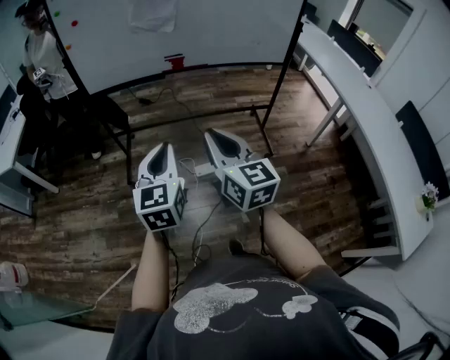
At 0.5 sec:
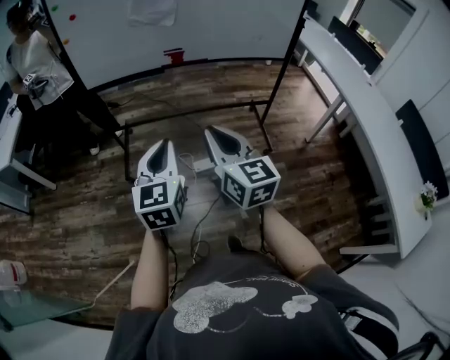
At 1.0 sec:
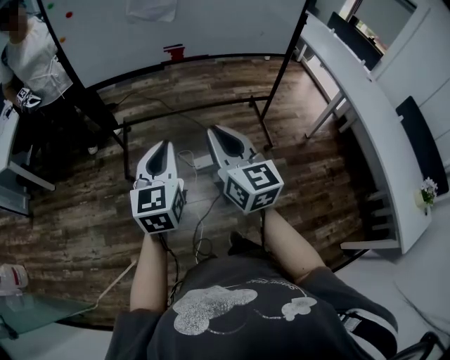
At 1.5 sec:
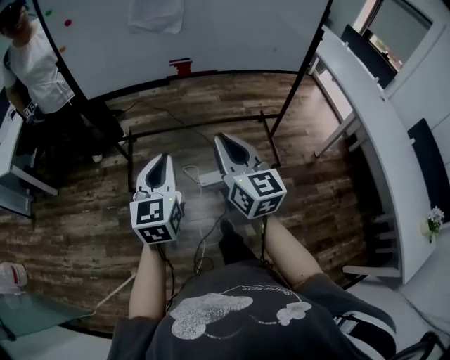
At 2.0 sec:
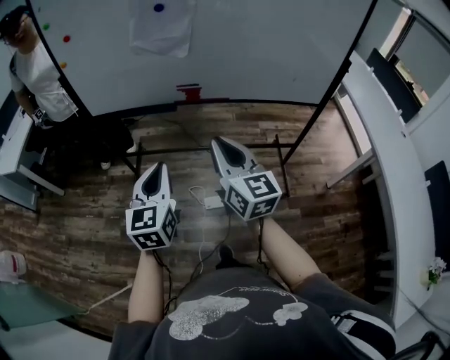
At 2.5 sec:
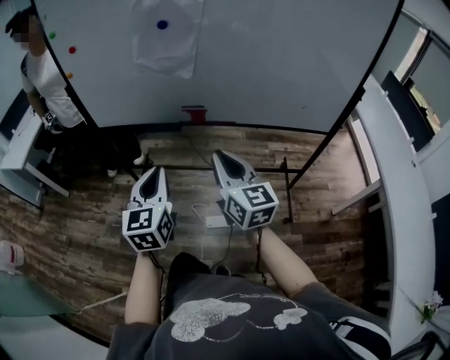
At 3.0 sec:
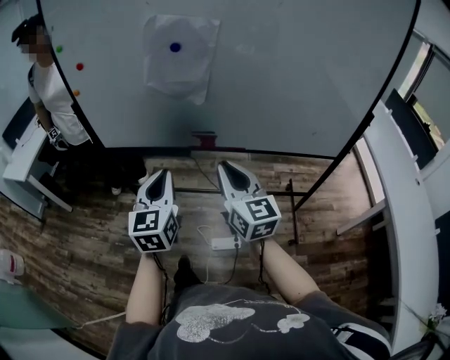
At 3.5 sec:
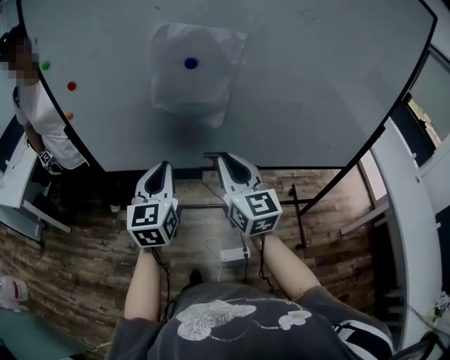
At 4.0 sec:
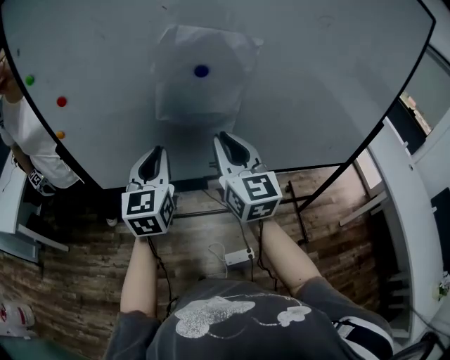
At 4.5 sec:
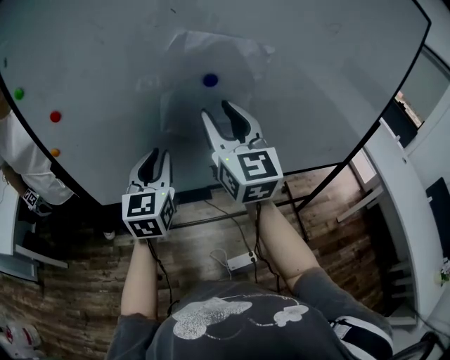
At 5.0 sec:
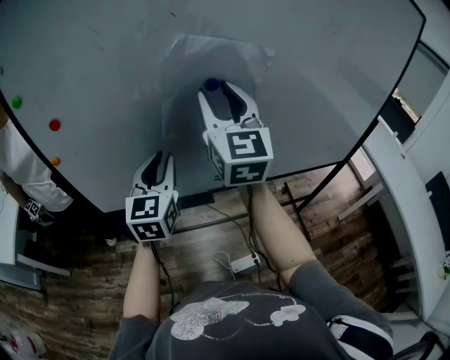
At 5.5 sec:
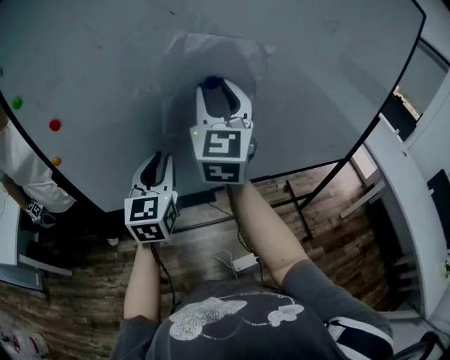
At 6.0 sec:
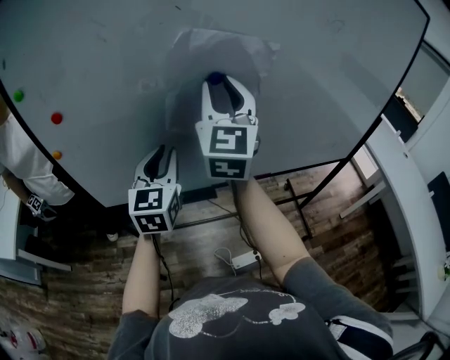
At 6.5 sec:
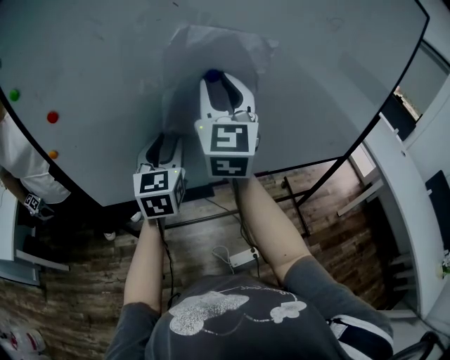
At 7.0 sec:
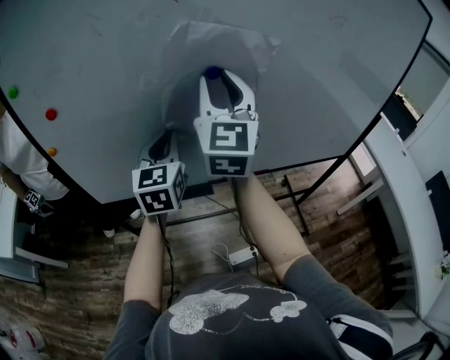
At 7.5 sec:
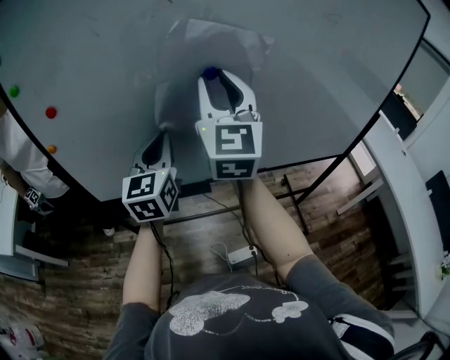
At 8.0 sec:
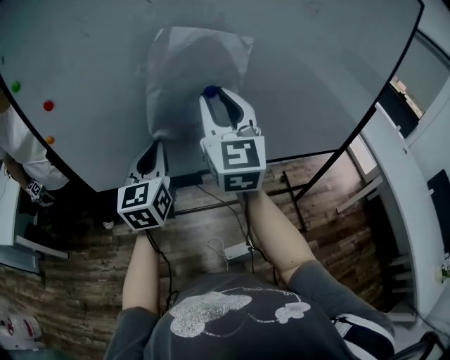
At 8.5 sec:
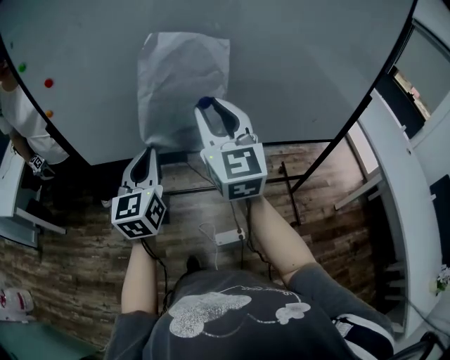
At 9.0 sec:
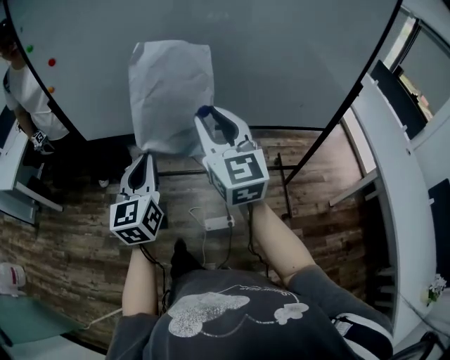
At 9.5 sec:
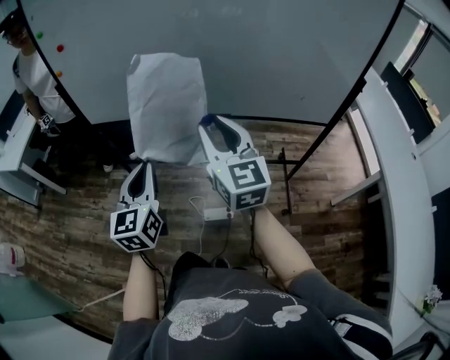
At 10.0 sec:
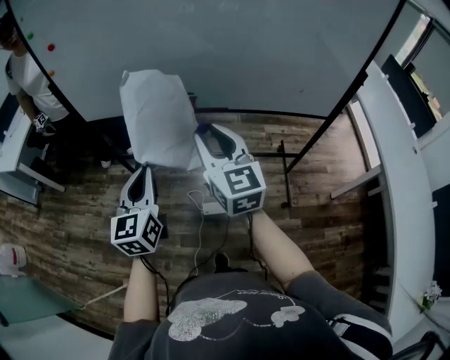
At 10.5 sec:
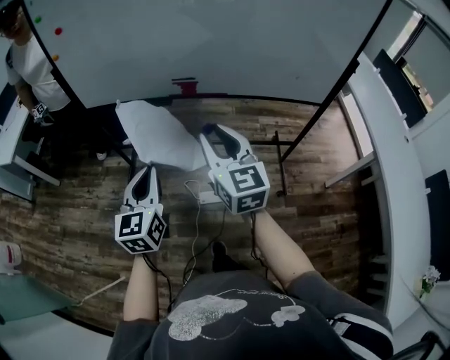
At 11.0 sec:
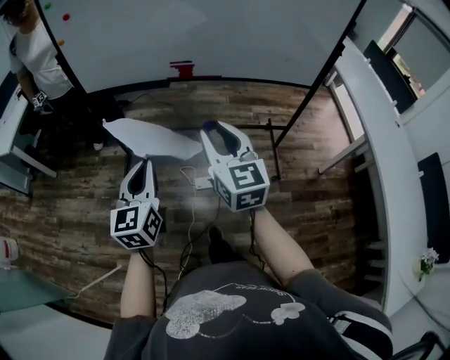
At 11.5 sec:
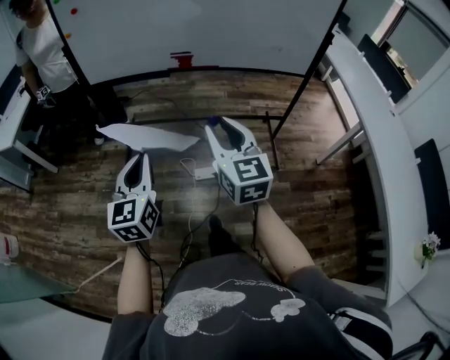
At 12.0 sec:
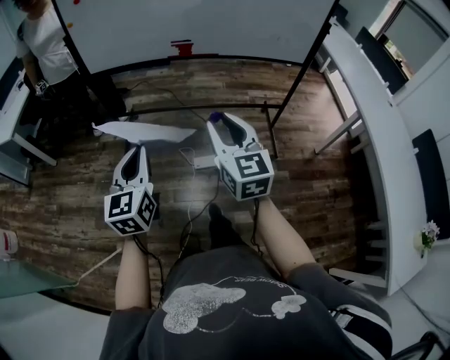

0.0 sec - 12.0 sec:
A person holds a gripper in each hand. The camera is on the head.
0.0 sec - 2.0 sec: The two grippers go approximately 25 cm forward.
2.0 sec - 4.0 sec: The two grippers go some 35 cm forward.
4.0 sec - 6.0 sec: The left gripper goes approximately 5 cm forward, while the right gripper moves upward and forward, about 15 cm, rotates some 30 degrees, and opens its fingers.
6.0 sec - 8.0 sec: The left gripper opens, then closes once more; the right gripper goes approximately 5 cm backward.
8.0 sec - 10.0 sec: The left gripper heads backward, covering approximately 30 cm, while the right gripper heads backward, downward and to the right, covering approximately 30 cm, and rotates some 30 degrees.
10.0 sec - 12.0 sec: The grippers both shift backward by roughly 25 cm.

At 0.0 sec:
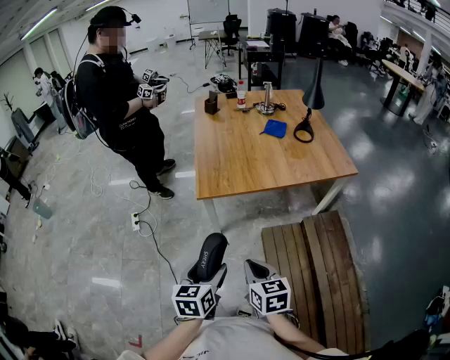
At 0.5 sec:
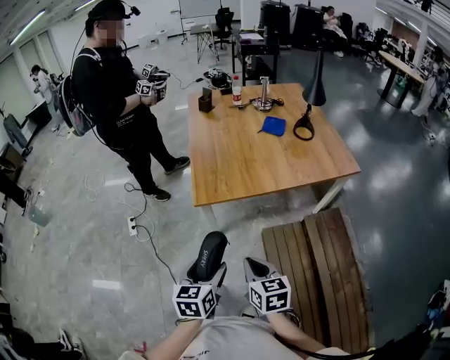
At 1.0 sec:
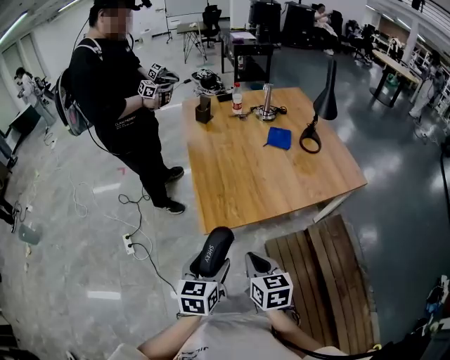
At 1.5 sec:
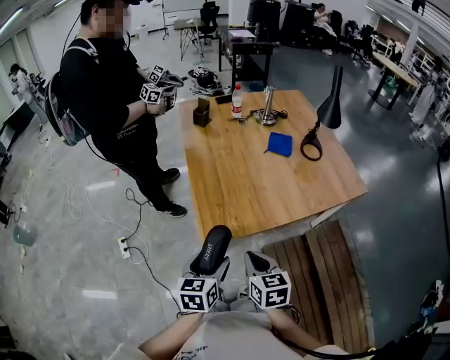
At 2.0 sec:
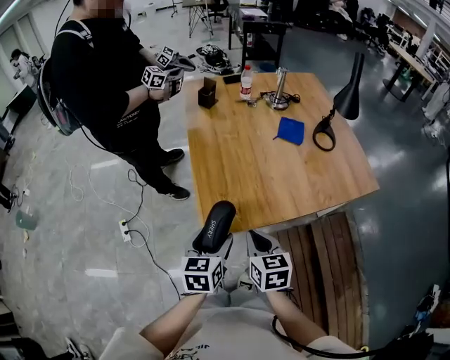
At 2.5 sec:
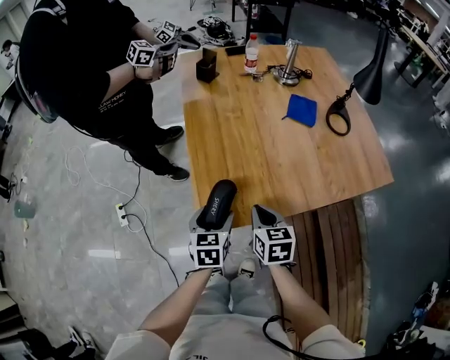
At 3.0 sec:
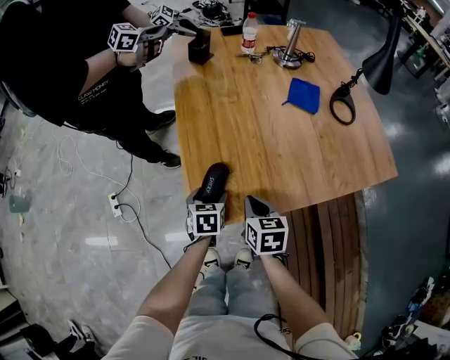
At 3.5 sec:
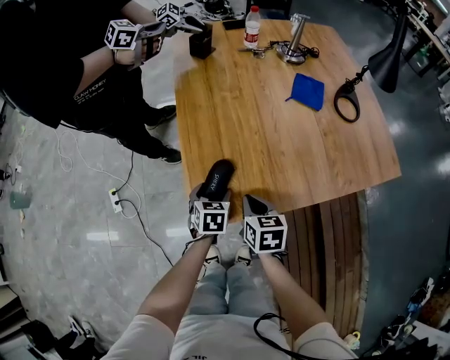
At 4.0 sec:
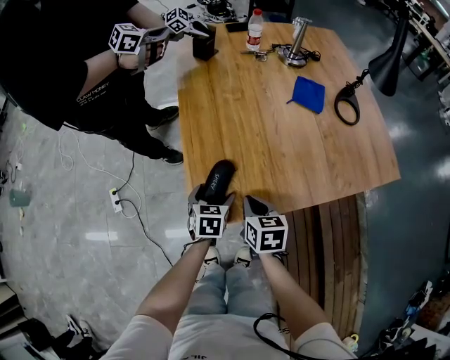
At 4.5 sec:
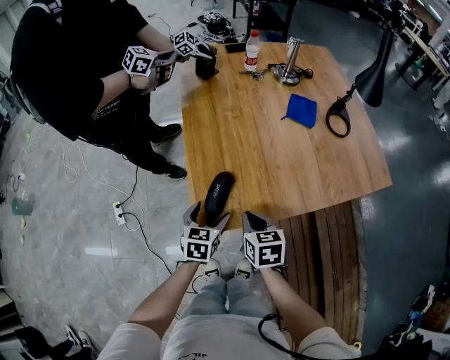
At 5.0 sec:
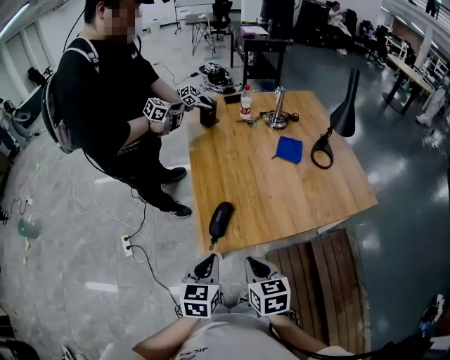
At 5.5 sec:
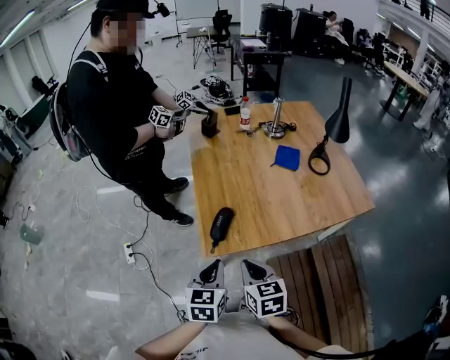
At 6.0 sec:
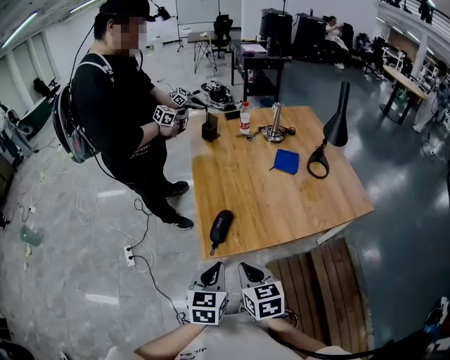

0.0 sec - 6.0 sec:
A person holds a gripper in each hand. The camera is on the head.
0.0 sec - 2.0 sec: Both grippers travel together forward, approximately 35 cm.
2.0 sec - 4.0 sec: Both grippers travel together downward and forward, roughly 25 cm.
4.0 sec - 6.0 sec: The grippers both shift upward and backward by approximately 30 cm. The left gripper closes.

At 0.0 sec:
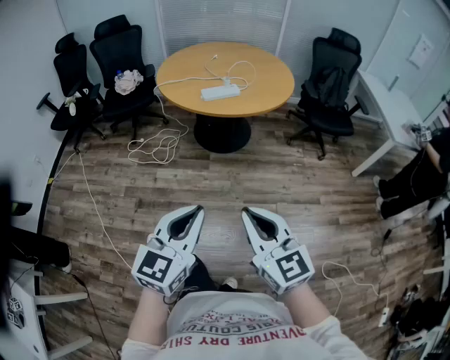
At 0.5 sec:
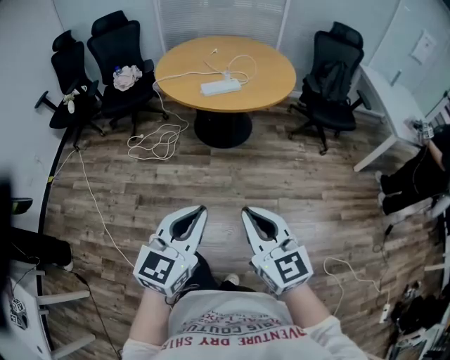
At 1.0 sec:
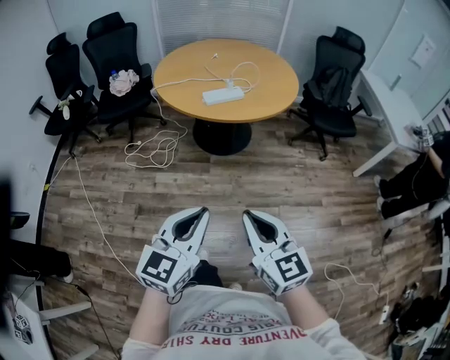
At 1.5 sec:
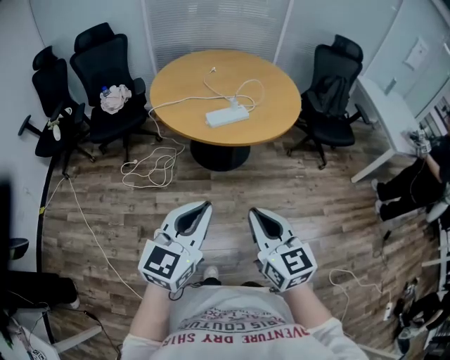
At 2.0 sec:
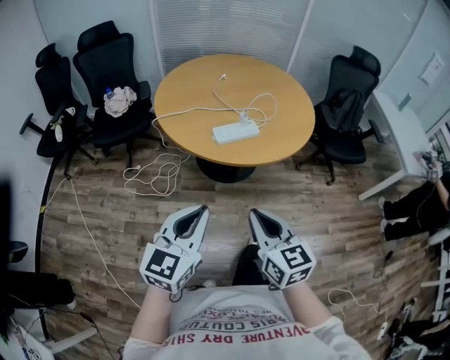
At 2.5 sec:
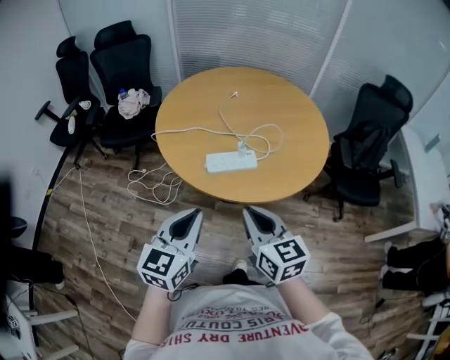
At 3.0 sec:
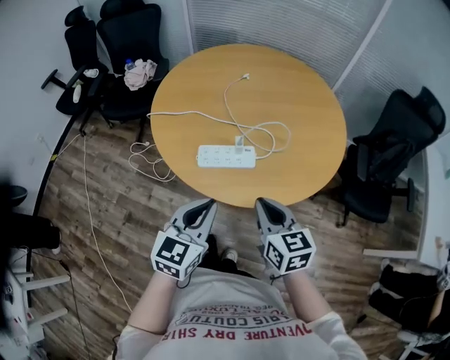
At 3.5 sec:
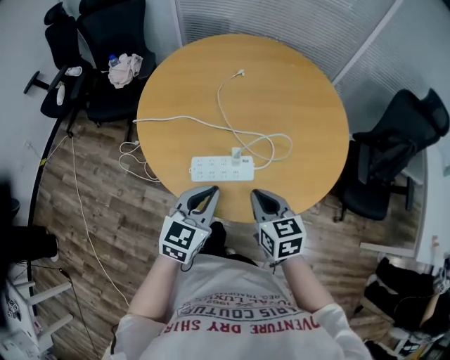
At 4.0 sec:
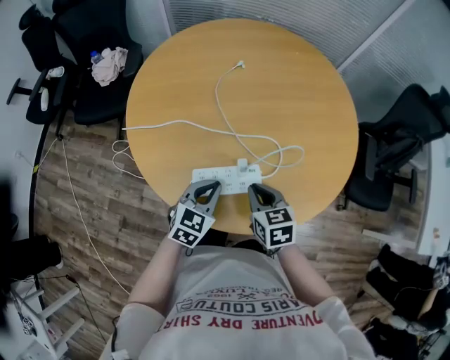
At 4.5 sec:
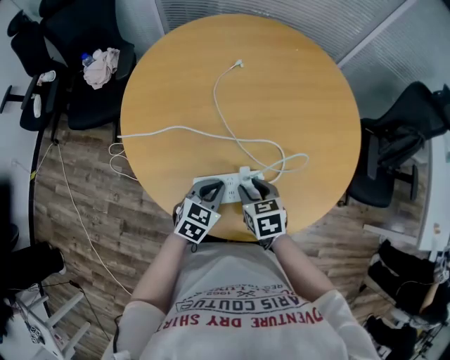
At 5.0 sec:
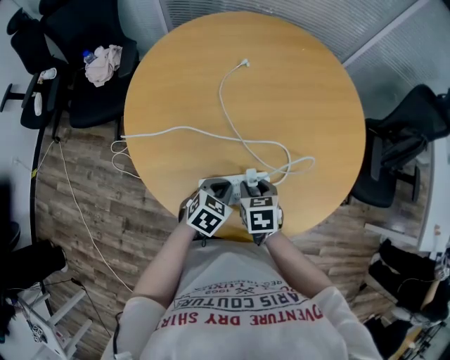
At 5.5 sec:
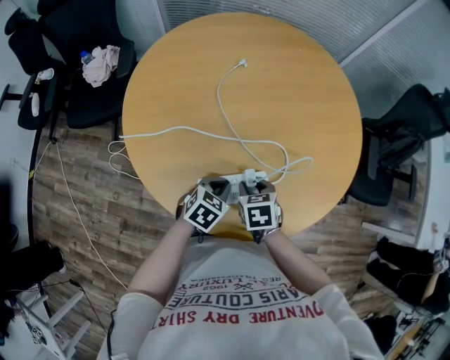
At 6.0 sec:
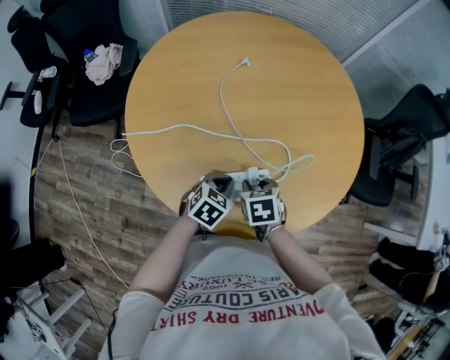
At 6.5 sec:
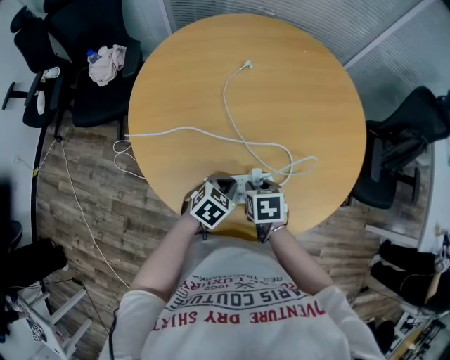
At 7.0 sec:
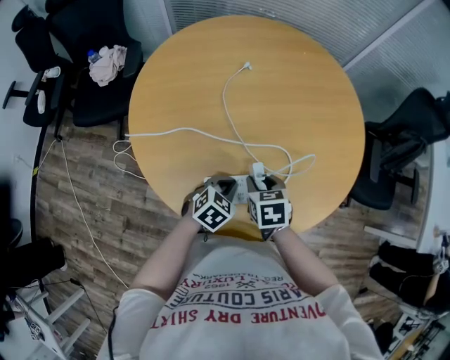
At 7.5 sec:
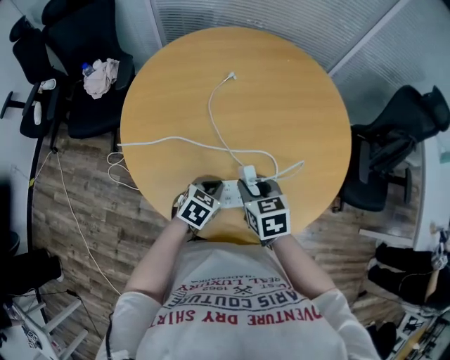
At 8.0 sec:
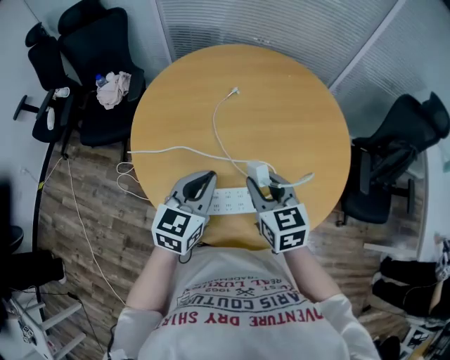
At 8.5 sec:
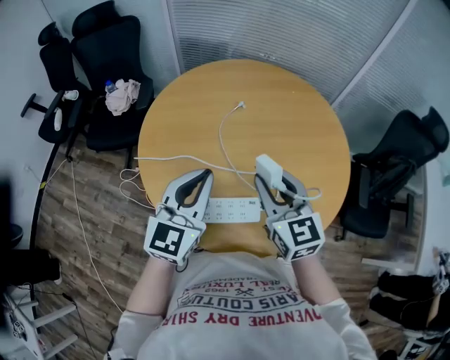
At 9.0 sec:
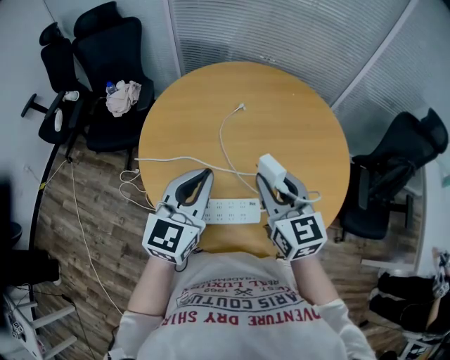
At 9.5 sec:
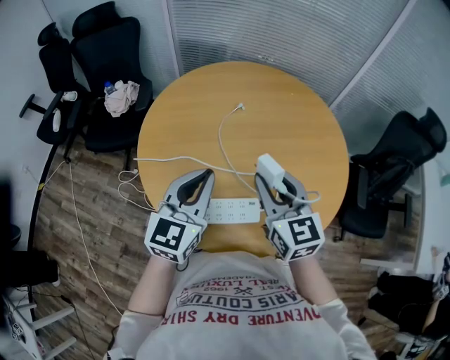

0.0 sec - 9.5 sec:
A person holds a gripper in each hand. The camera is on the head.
0.0 sec - 2.0 sec: The two grippers go roughly 30 cm forward.
2.0 sec - 4.0 sec: The two grippers travel together, forward, approximately 50 cm. The two grippers go roughly 25 cm downward. The left gripper swivels approximately 20 degrees; the right gripper turns by roughly 30 degrees.
4.0 sec - 5.5 sec: The two grippers go roughly 5 cm downward. The left gripper rotates about 20 degrees. Meanwhile the right gripper opens its fingers.
5.5 sec - 7.5 sec: The right gripper heads upward, covering some 10 cm.
7.5 sec - 9.5 sec: Both grippers move upward, approximately 25 cm. The left gripper points its fingers some 40 degrees further upward. The right gripper tilts its fingers approximately 30 degrees upward.
